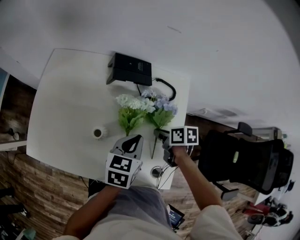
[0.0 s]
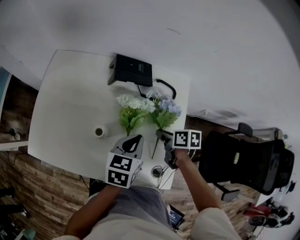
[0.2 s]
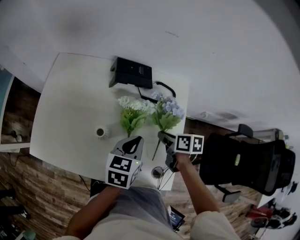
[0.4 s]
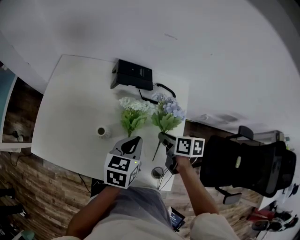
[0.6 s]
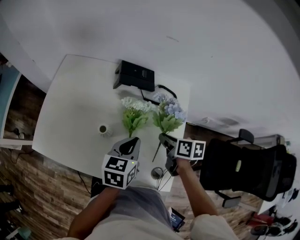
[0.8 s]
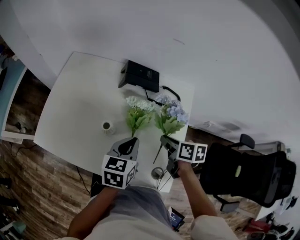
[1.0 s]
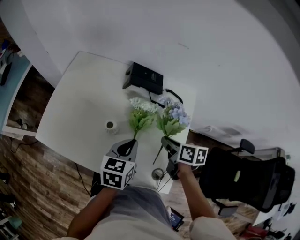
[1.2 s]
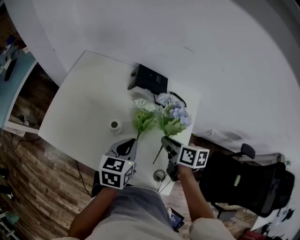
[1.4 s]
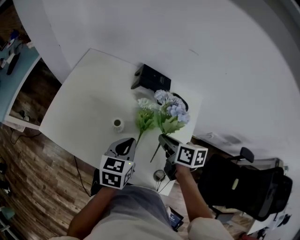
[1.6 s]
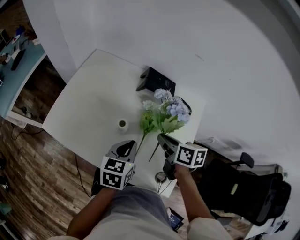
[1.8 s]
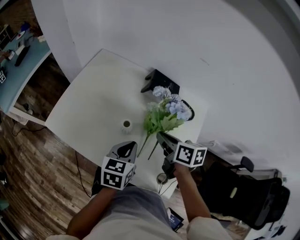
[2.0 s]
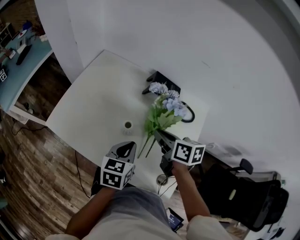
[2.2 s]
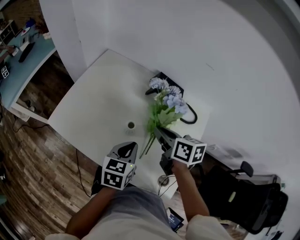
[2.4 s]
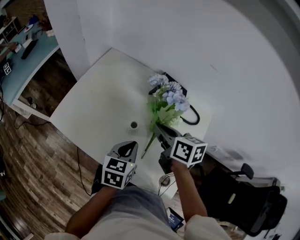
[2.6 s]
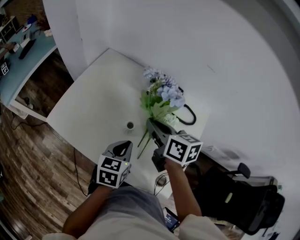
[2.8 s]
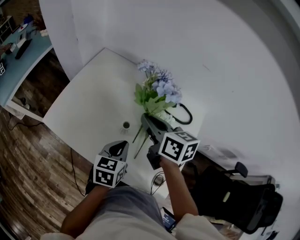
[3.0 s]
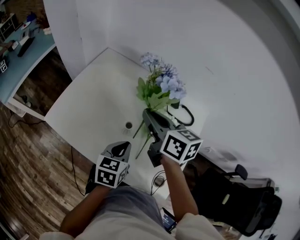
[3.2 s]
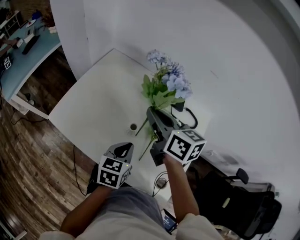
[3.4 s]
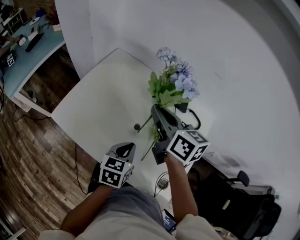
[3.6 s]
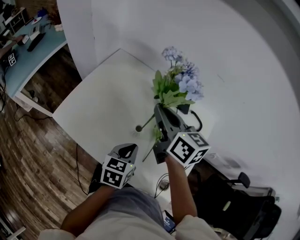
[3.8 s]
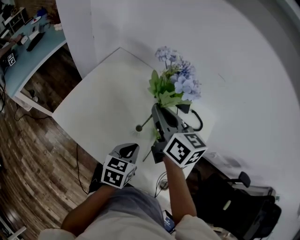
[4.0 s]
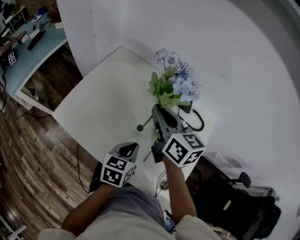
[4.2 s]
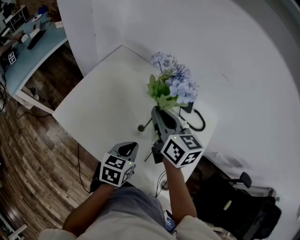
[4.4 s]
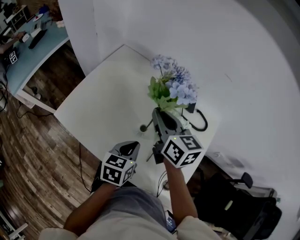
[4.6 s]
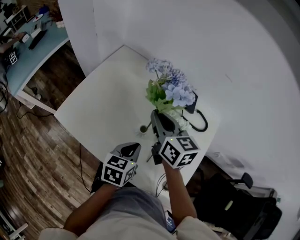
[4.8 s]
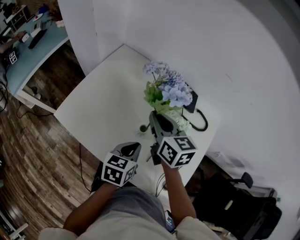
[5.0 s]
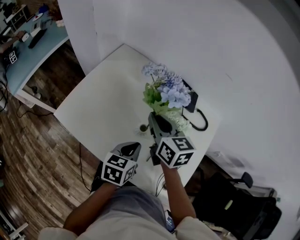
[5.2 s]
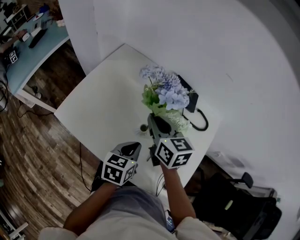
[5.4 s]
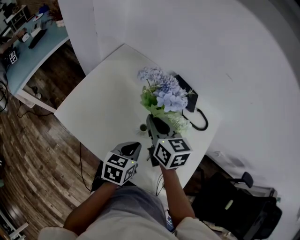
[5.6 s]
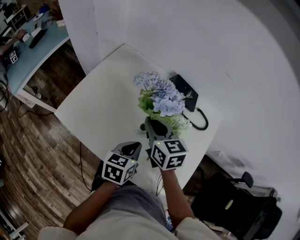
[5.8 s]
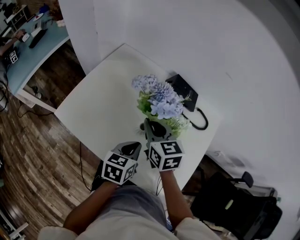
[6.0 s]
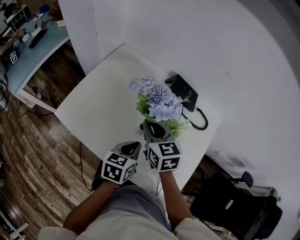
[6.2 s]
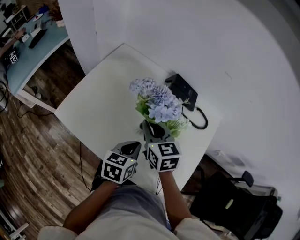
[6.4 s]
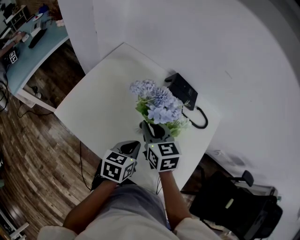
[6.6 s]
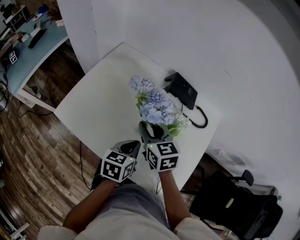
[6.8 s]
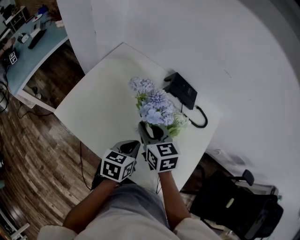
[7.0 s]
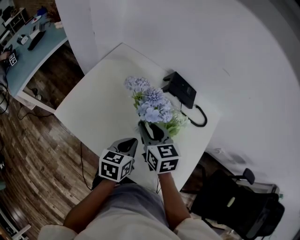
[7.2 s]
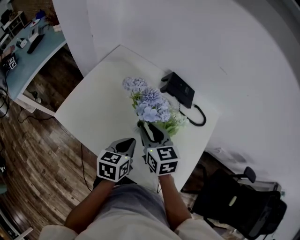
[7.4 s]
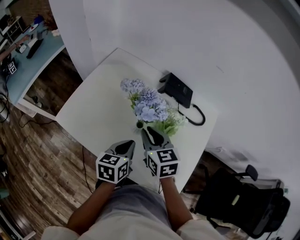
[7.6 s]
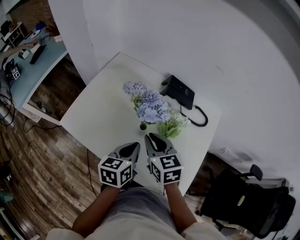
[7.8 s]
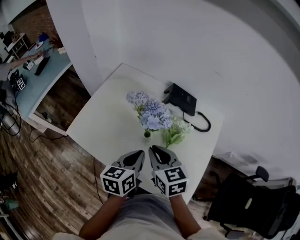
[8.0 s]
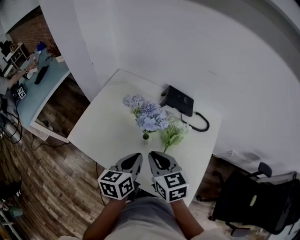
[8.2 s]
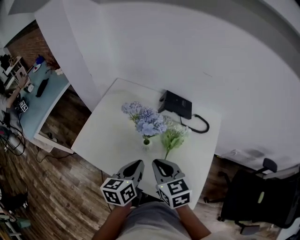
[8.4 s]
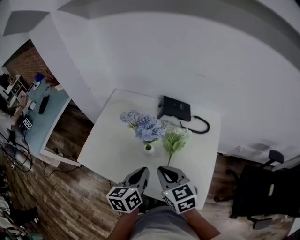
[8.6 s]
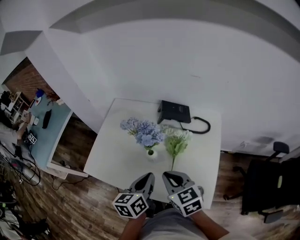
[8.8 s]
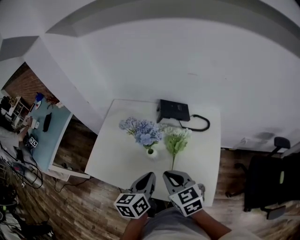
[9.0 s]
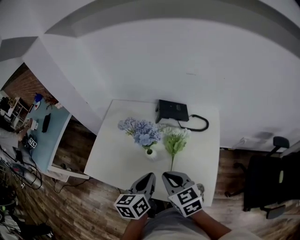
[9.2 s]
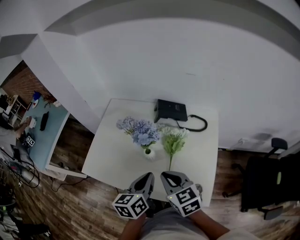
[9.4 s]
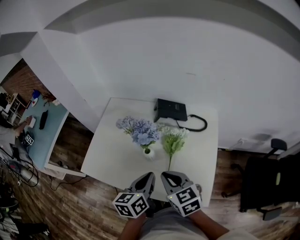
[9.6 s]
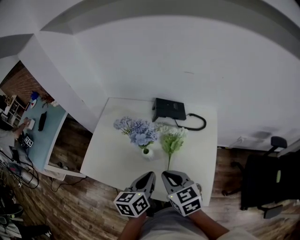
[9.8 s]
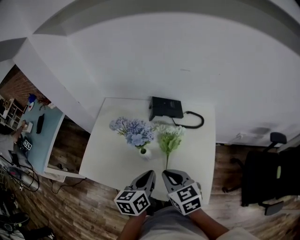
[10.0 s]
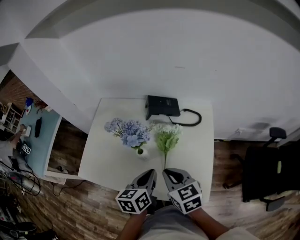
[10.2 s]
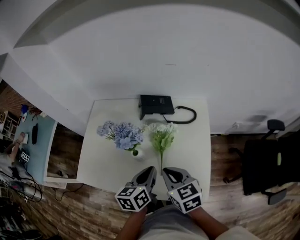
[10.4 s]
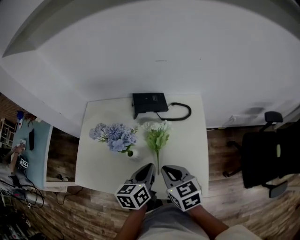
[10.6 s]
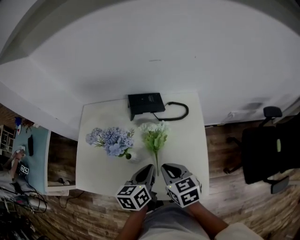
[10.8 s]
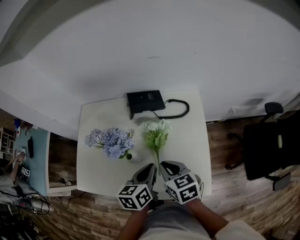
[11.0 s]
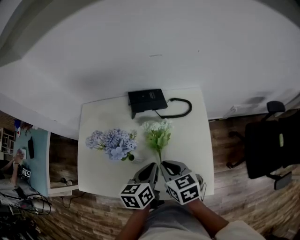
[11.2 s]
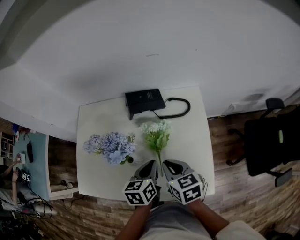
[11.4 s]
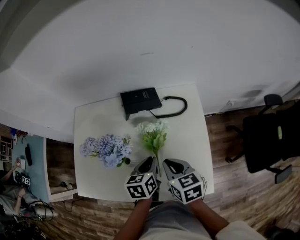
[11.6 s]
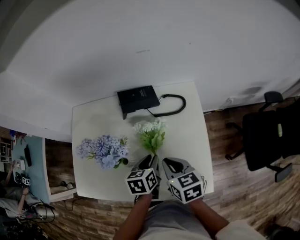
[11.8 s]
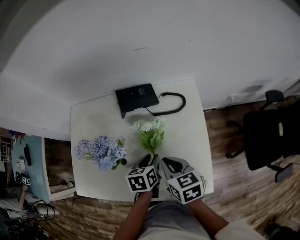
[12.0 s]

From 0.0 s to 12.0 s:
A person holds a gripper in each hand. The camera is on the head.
From 0.0 s to 1.6 s: The right gripper moves upward and to the left, about 10 cm, and rotates approximately 20 degrees, while the left gripper travels to the left by some 10 cm.
From 1.6 s to 3.0 s: The left gripper goes about 5 cm to the left. The right gripper is displaced to the left, upward and forward by approximately 20 cm, and rotates about 20 degrees.
From 4.4 s to 6.0 s: The right gripper heads downward, covering roughly 10 cm.
From 6.0 s to 7.6 s: There are only small adjustments of the grippers.
From 7.6 s to 9.0 s: The right gripper goes about 10 cm backward. The left gripper is displaced upward by roughly 10 cm.
From 9.0 s to 10.4 s: The left gripper heads to the right, covering roughly 5 cm, while the right gripper changes place by some 5 cm.
From 10.4 s to 12.0 s: The right gripper moves downward and forward, roughly 10 cm, while the left gripper is displaced downward and forward by about 15 cm, turns by roughly 20 degrees, and opens its fingers.

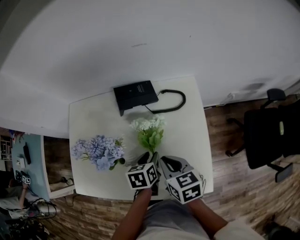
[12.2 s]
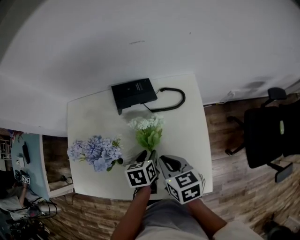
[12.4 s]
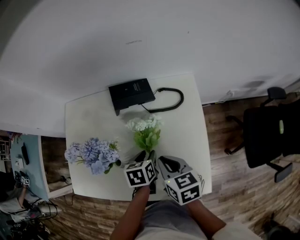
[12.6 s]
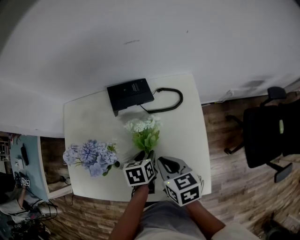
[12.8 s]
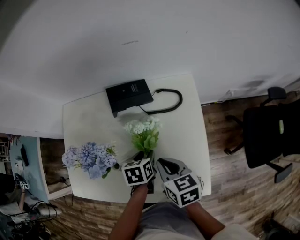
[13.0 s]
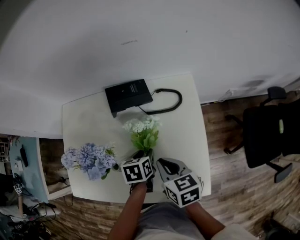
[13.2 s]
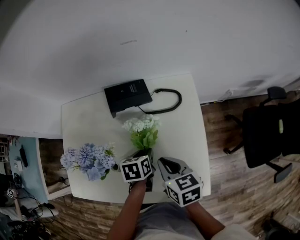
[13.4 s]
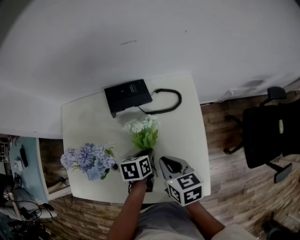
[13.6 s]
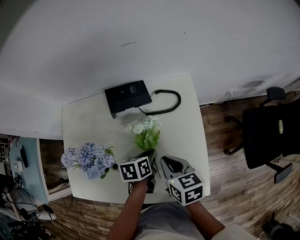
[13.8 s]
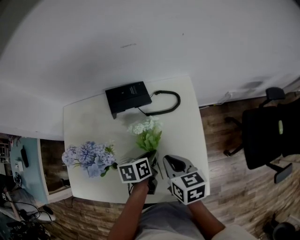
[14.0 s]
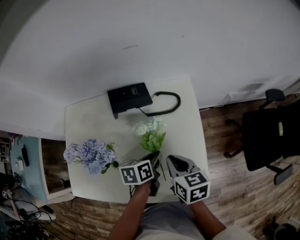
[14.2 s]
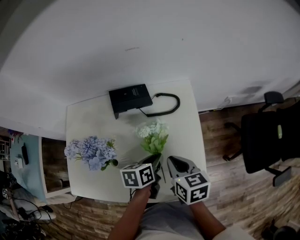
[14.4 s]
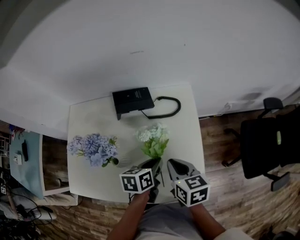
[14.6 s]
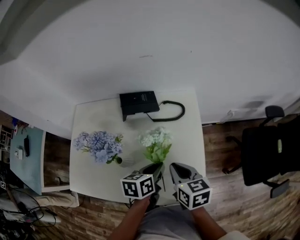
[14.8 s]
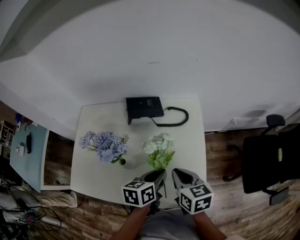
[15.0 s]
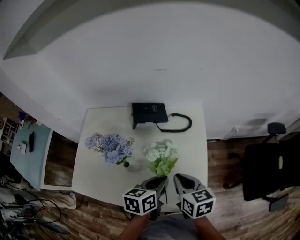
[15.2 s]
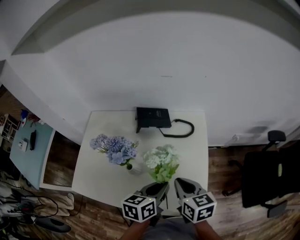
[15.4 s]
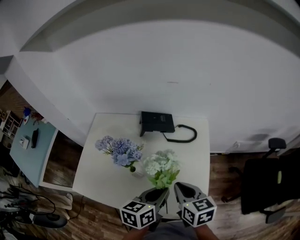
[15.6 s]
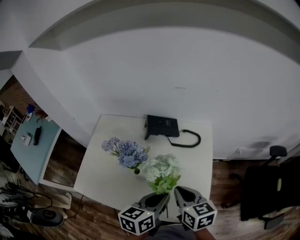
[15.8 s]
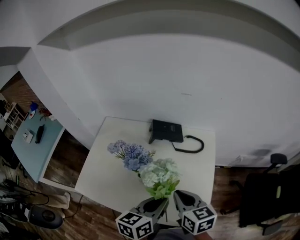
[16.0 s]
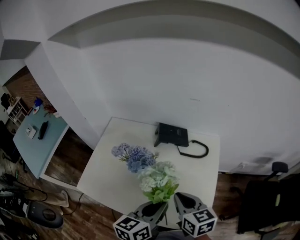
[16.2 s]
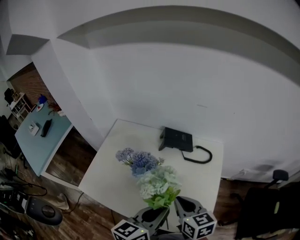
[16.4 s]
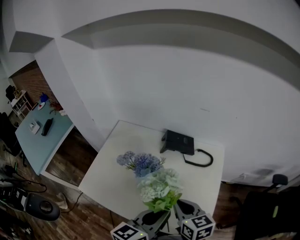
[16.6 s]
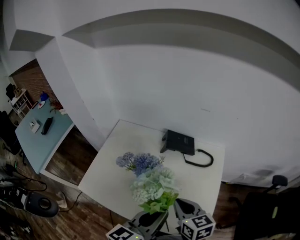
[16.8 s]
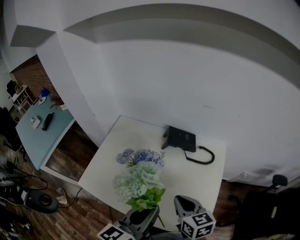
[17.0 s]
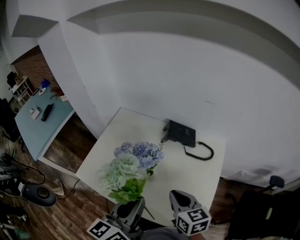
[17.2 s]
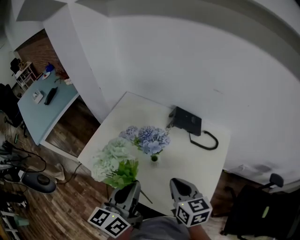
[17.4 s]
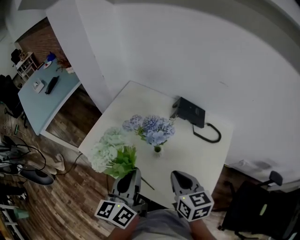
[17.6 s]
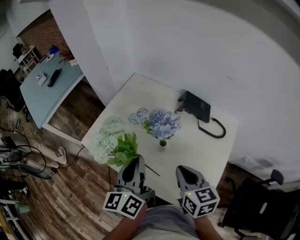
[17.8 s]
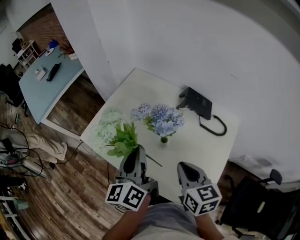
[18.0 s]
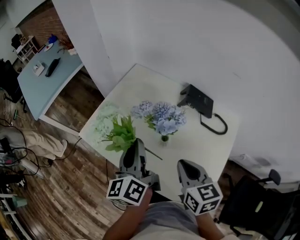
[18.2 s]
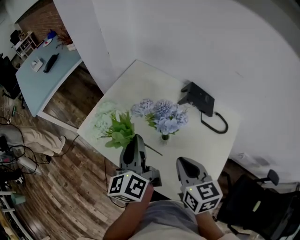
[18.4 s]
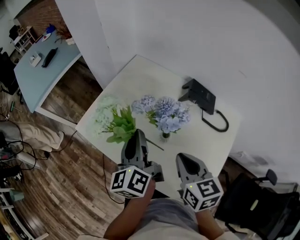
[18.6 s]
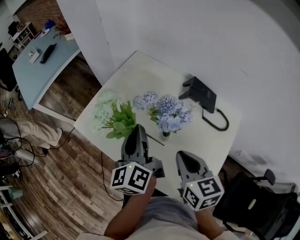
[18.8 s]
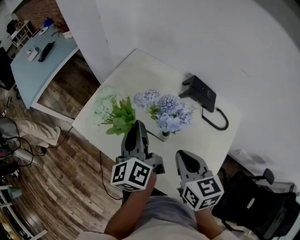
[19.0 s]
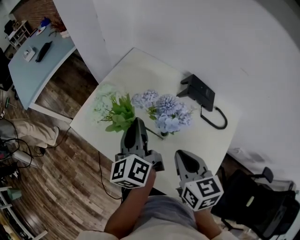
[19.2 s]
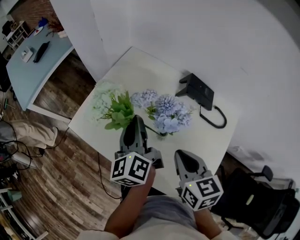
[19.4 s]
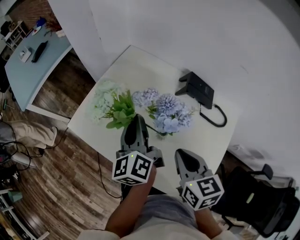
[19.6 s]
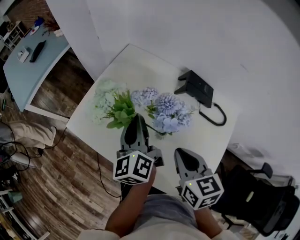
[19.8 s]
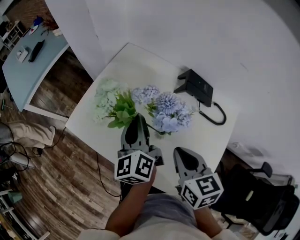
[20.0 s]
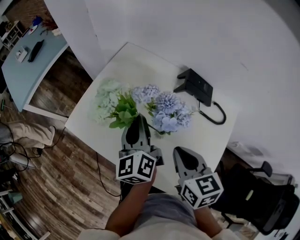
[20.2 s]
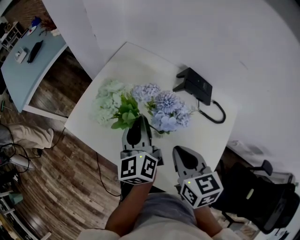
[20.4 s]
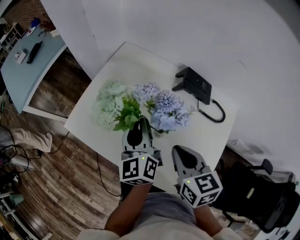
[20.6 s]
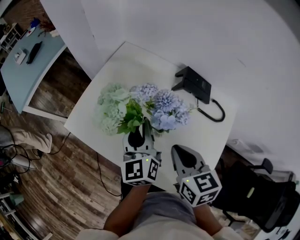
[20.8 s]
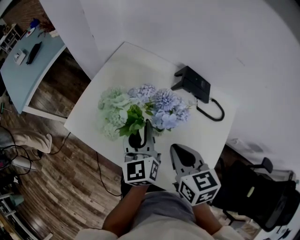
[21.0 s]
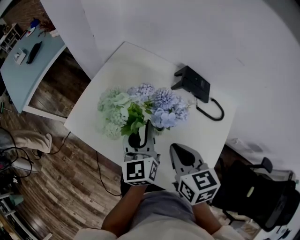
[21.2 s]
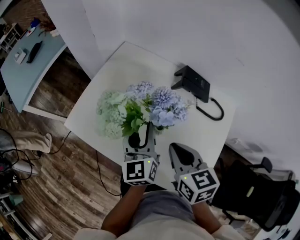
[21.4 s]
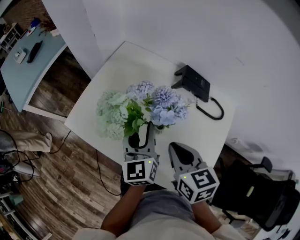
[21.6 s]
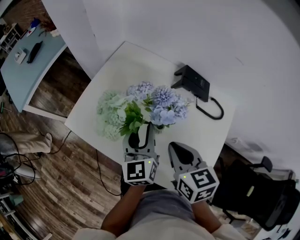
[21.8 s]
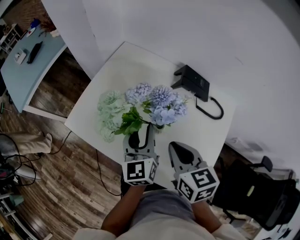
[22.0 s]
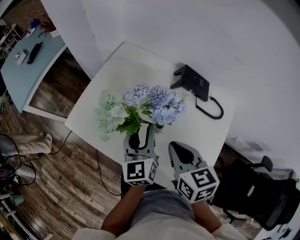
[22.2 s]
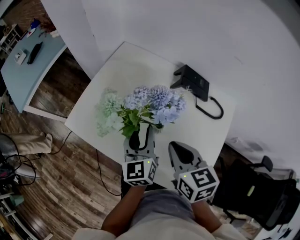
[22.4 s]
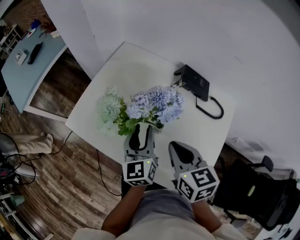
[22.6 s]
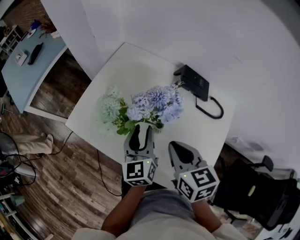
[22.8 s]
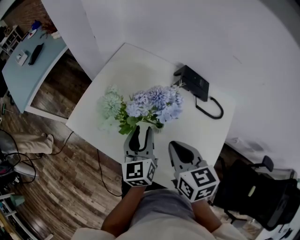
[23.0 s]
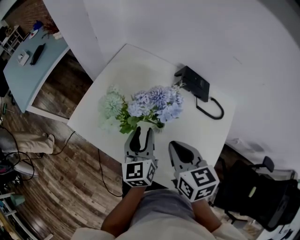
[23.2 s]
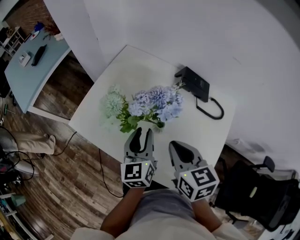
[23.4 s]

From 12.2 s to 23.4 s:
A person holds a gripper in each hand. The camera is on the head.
From 12.2 s to 13.8 s: The grippers make only small movements.
From 13.8 s to 15.4 s: The right gripper is displaced upward by approximately 5 cm. Meanwhile the left gripper shifts about 15 cm upward and backward, and swivels about 20 degrees.
From 15.4 s to 17.0 s: The right gripper is displaced to the left by roughly 10 cm; the left gripper heads upward and to the left, covering some 20 cm, and rotates roughly 30 degrees.
From 17.0 s to 18.6 s: The left gripper moves about 15 cm, and turns by about 40 degrees; the right gripper changes place by roughly 5 cm.
From 18.6 s to 20.2 s: The left gripper changes place by approximately 5 cm.
From 20.2 s to 21.8 s: The left gripper changes place by roughly 5 cm, turns by some 20 degrees, and opens up.
From 21.8 s to 23.4 s: The grippers make only small movements.

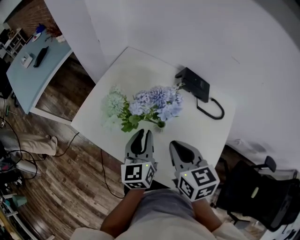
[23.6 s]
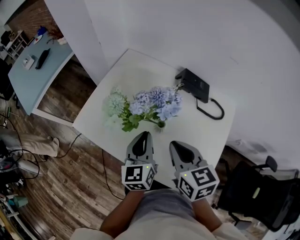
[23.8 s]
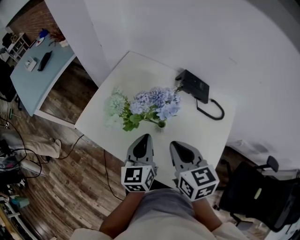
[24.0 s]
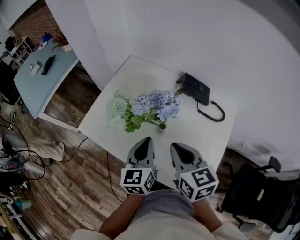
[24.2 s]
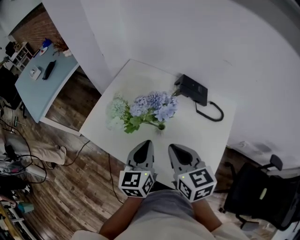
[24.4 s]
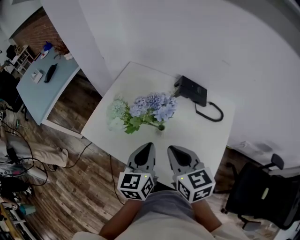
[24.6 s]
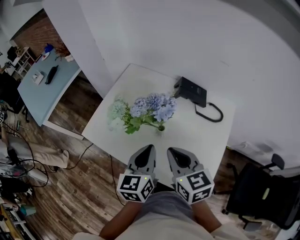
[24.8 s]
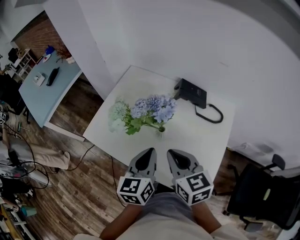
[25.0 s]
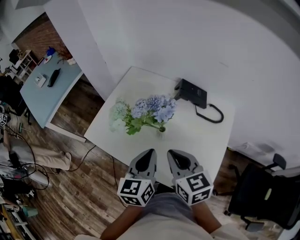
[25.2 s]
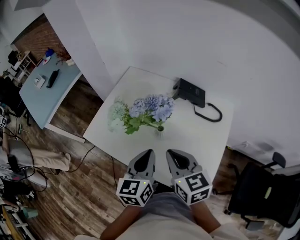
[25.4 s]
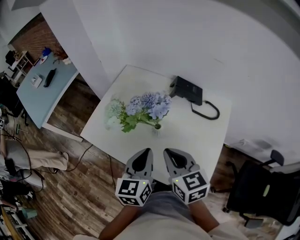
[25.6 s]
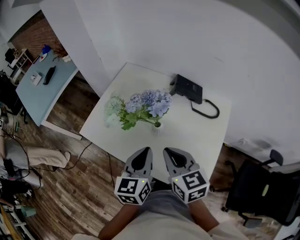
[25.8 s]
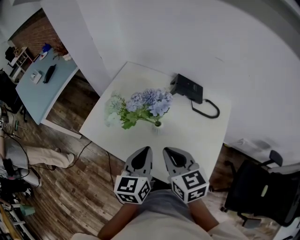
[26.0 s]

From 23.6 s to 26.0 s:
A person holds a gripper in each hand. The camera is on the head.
From 23.6 s to 24.8 s: The left gripper moves backward and upward, roughly 10 cm.
From 24.8 s to 26.0 s: There are only small adjustments of the grippers.
